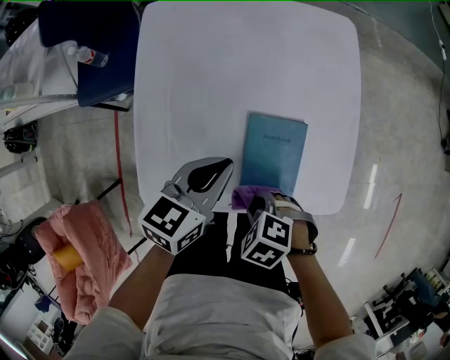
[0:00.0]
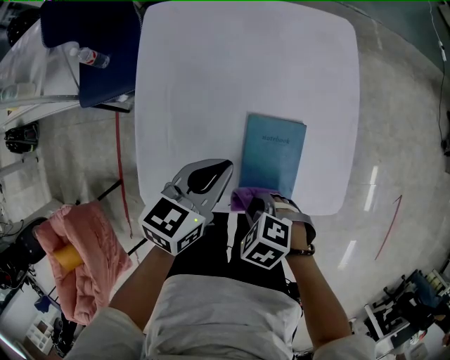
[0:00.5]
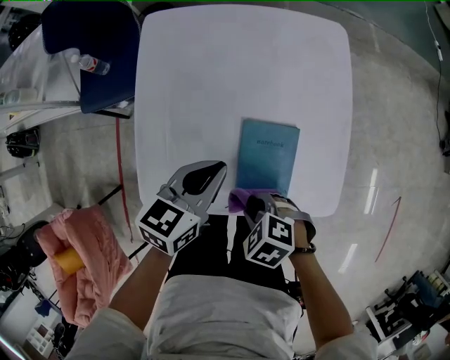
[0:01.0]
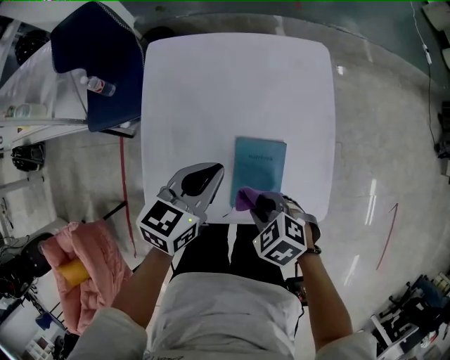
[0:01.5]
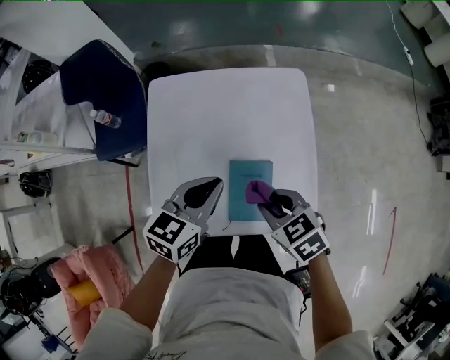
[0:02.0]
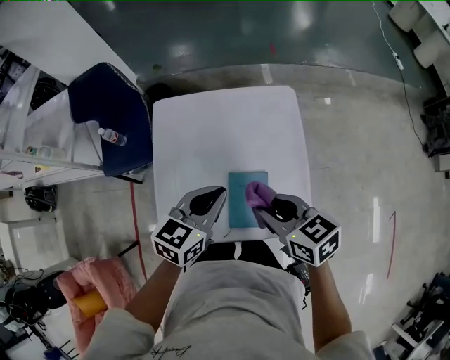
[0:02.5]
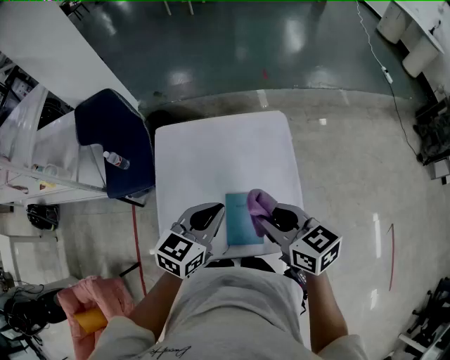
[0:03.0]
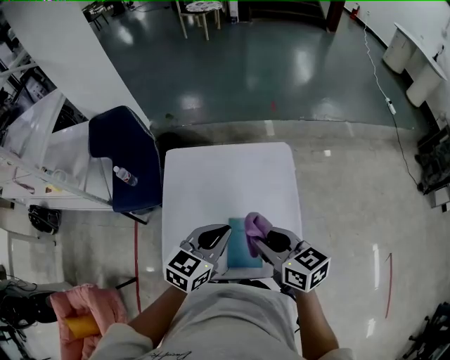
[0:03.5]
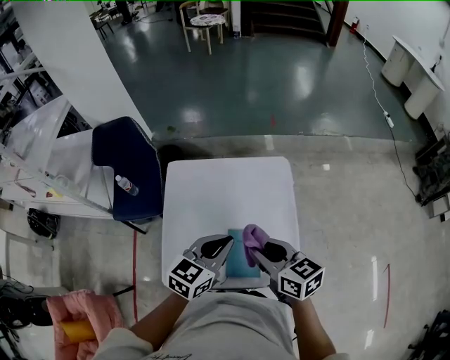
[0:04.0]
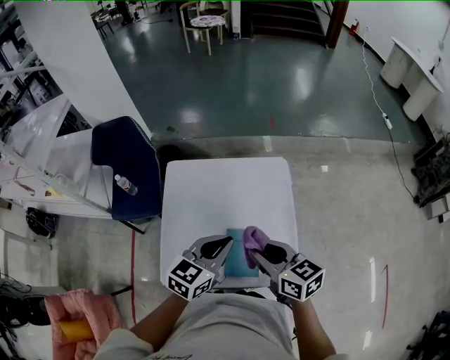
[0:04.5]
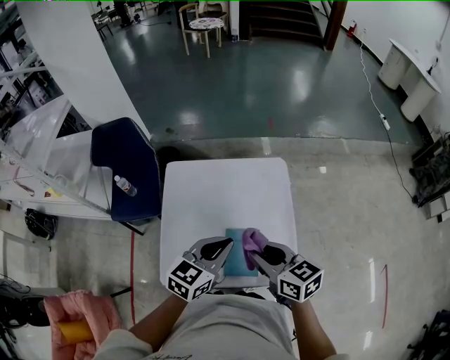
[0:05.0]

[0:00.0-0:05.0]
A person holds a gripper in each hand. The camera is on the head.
0:00.0 to 0:02.5: The left gripper moves upward, roughly 15 cm. The right gripper moves upward, roughly 25 cm, and tips its fingers upward by about 40 degrees.
0:02.5 to 0:05.0: The left gripper ends up about 5 cm from where it was, while the right gripper travels upward by approximately 5 cm.

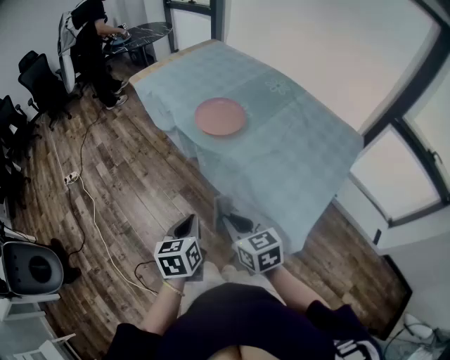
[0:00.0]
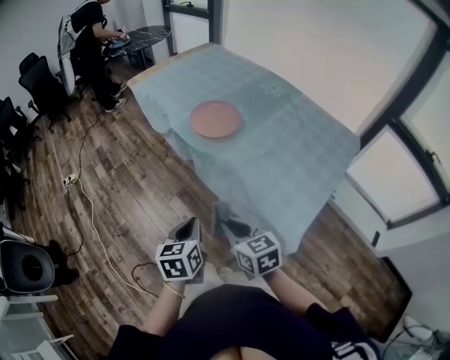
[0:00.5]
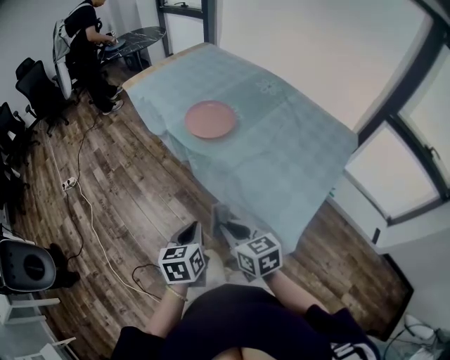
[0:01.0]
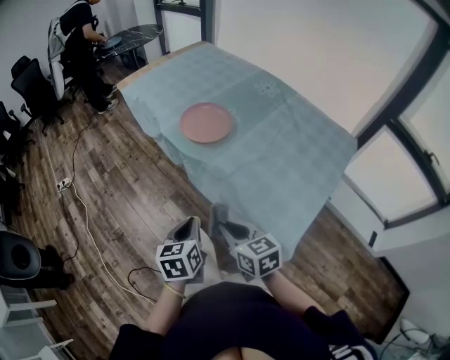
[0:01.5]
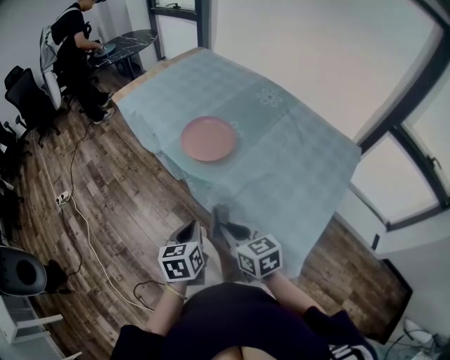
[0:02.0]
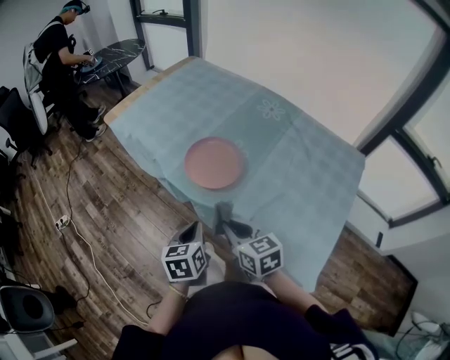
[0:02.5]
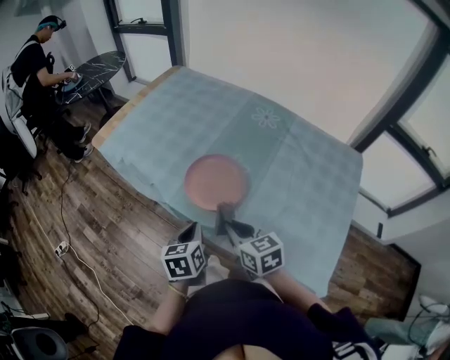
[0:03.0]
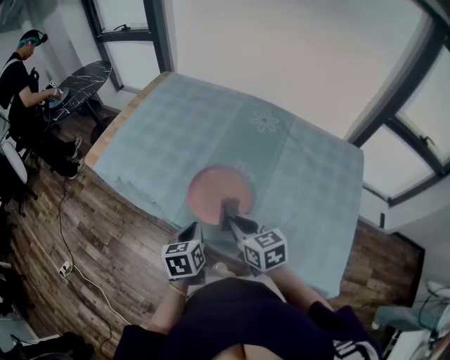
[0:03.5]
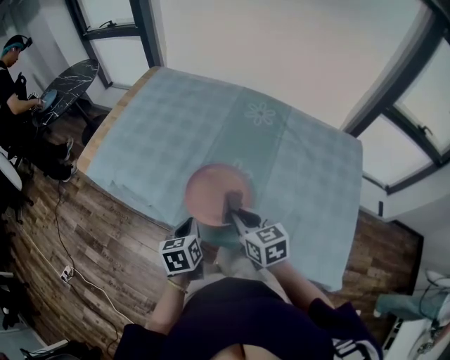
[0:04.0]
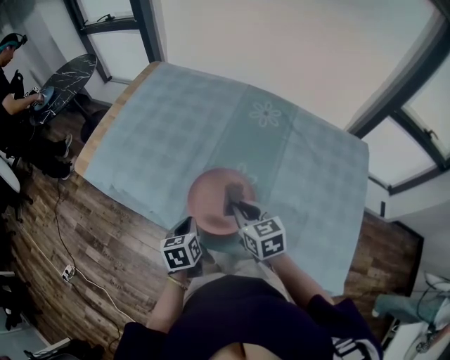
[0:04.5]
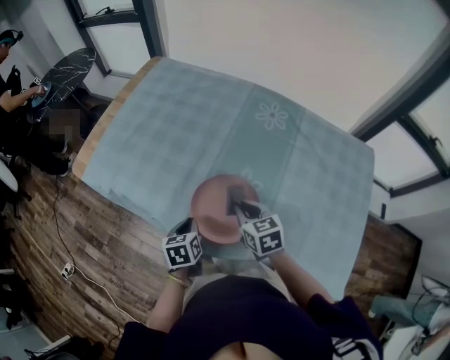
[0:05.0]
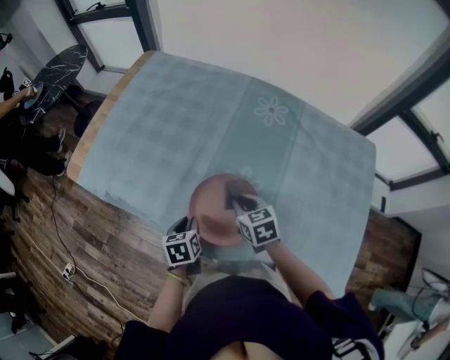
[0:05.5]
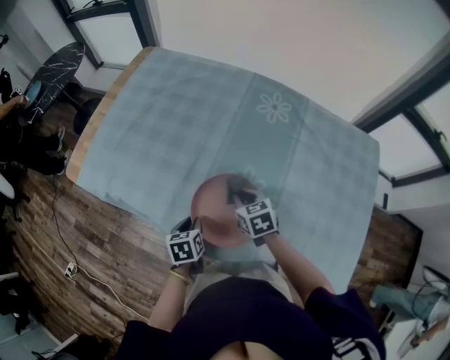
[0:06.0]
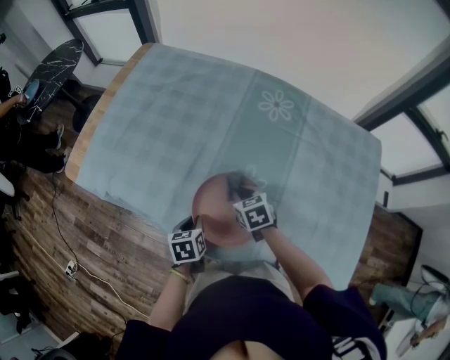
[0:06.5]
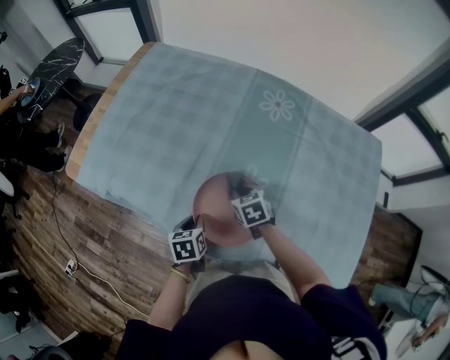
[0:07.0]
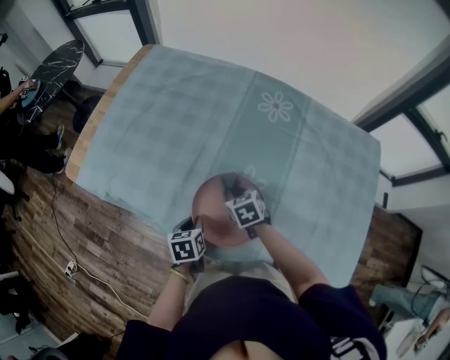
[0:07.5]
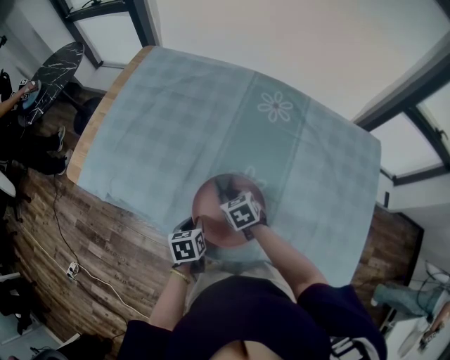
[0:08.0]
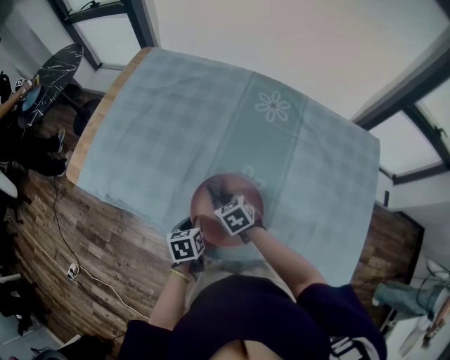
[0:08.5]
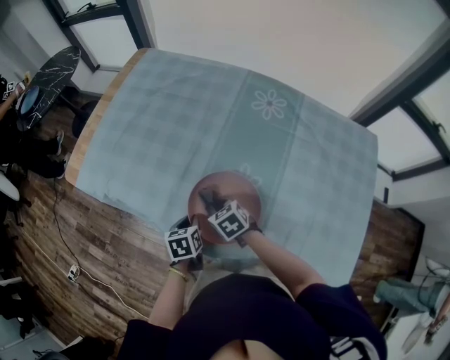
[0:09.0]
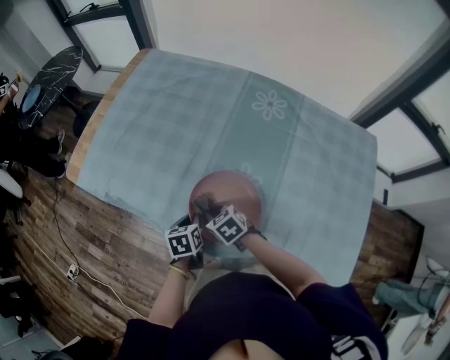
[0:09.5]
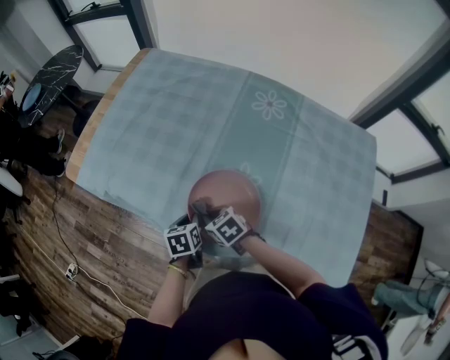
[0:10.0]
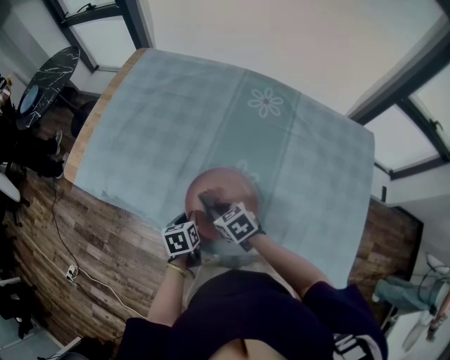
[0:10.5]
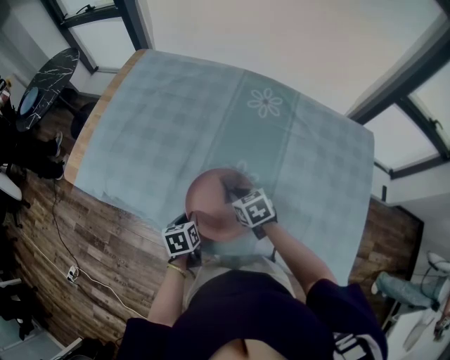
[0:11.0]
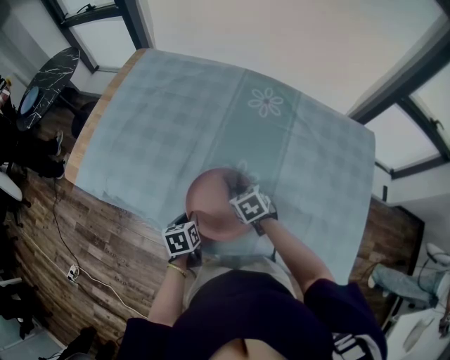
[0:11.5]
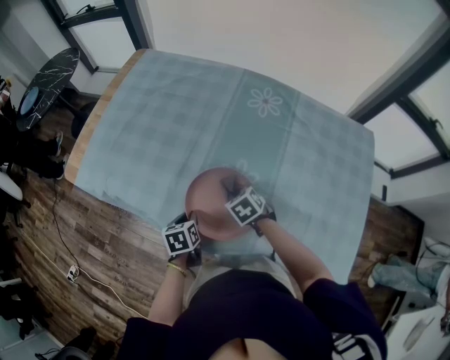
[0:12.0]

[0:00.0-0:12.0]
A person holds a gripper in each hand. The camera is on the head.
0:00.0 to 0:02.0: The right gripper is displaced forward by roughly 10 cm. The left gripper moves forward and to the right, some 10 cm.
0:02.0 to 0:04.0: Both grippers move forward, approximately 30 cm. The right gripper swivels about 20 degrees.
0:04.0 to 0:06.0: The right gripper goes approximately 20 cm forward and downward. Meanwhile the left gripper travels downward and forward by approximately 15 cm.
0:06.0 to 0:08.0: The right gripper ends up roughly 5 cm from where it was.
0:08.0 to 0:10.0: The right gripper moves to the left and backward, some 10 cm.
0:10.0 to 0:12.0: The right gripper heads to the right, covering some 10 cm.

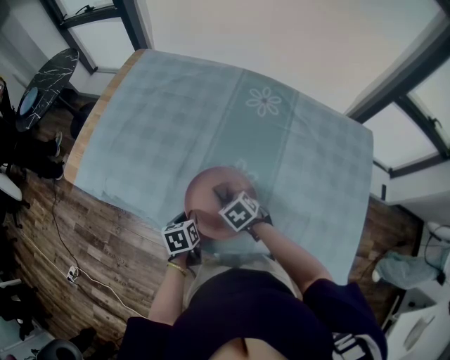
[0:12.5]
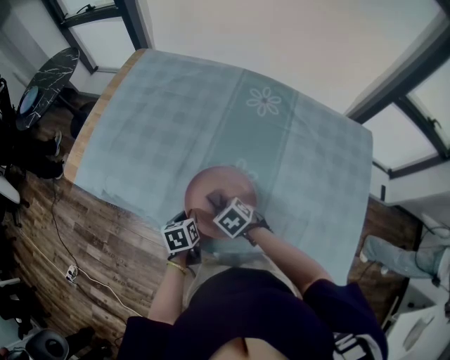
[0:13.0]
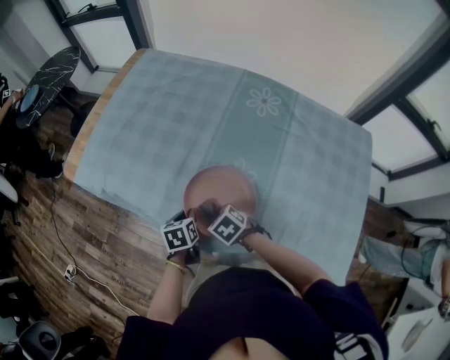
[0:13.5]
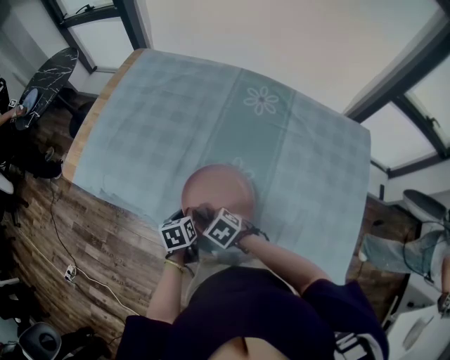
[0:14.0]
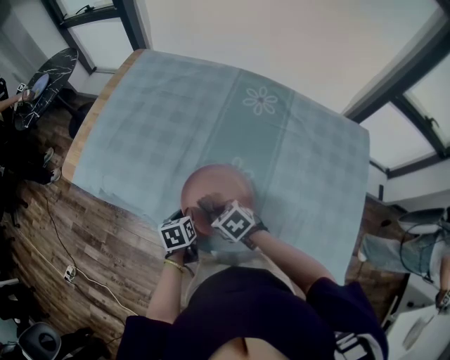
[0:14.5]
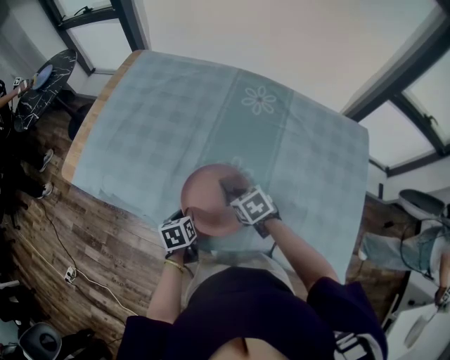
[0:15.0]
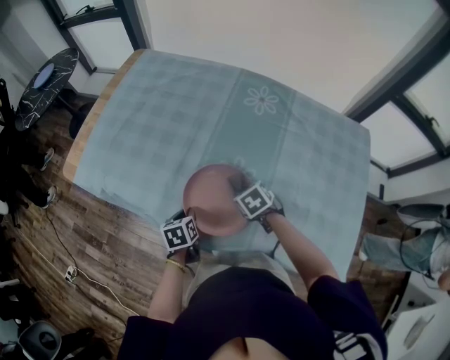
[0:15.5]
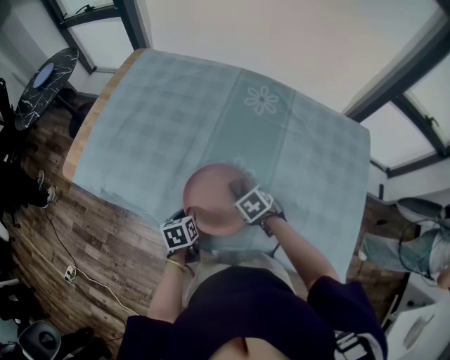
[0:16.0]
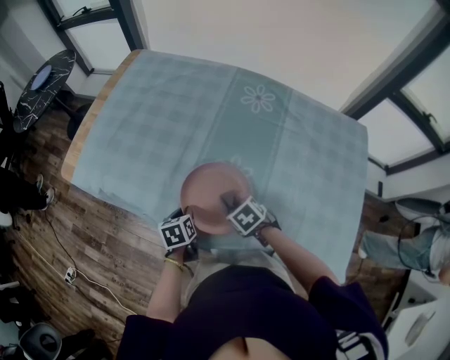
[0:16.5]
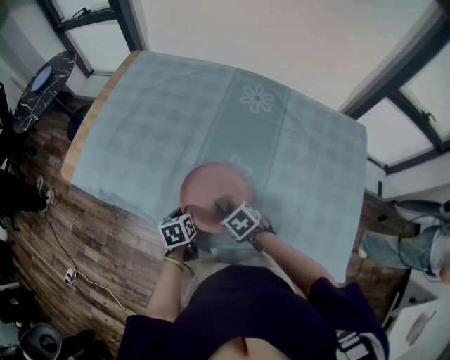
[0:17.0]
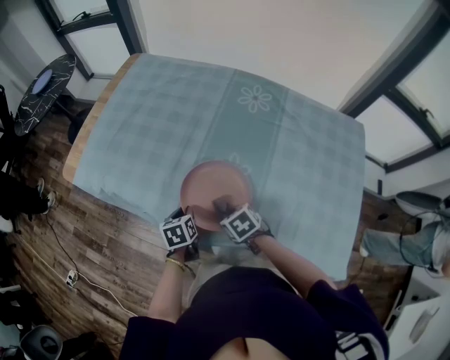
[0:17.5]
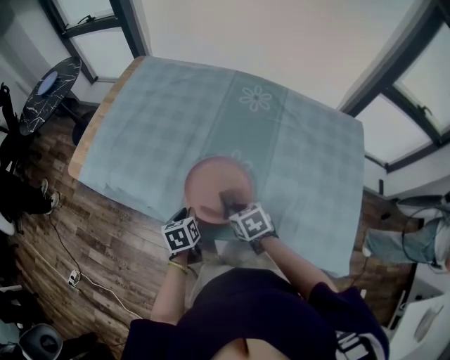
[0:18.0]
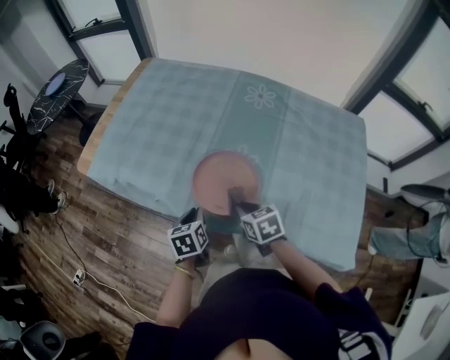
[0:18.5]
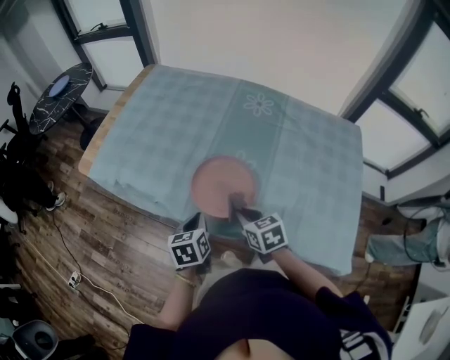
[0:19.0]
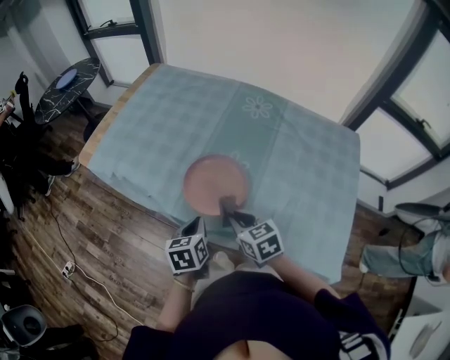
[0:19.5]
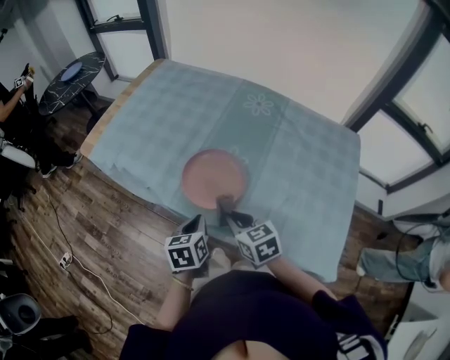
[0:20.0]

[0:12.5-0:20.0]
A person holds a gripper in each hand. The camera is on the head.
0:12.5 to 0:14.5: The right gripper heads to the left, covering approximately 5 cm.
0:14.5 to 0:16.5: The right gripper moves about 10 cm.
0:16.5 to 0:18.0: The right gripper goes about 5 cm upward, and rotates roughly 20 degrees.
0:18.0 to 0:20.0: The right gripper moves upward and backward, roughly 15 cm, and turns by about 20 degrees; the left gripper goes roughly 15 cm backward, upward and to the right.

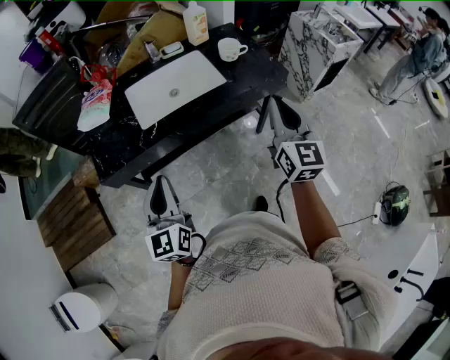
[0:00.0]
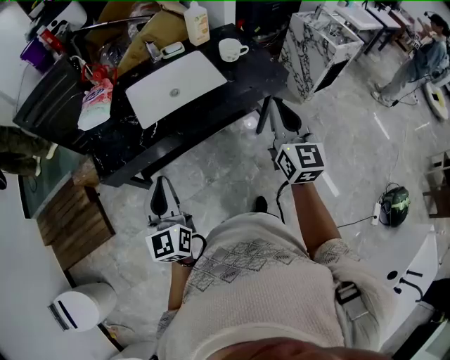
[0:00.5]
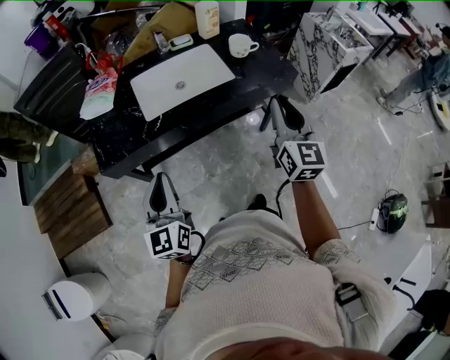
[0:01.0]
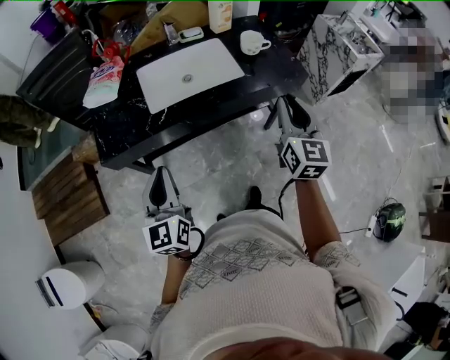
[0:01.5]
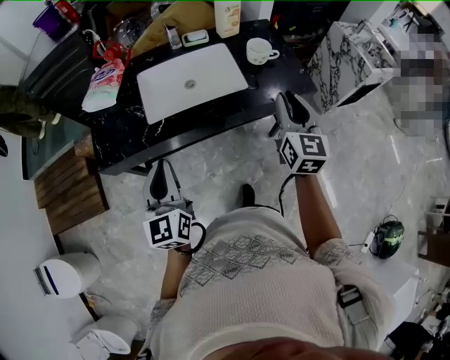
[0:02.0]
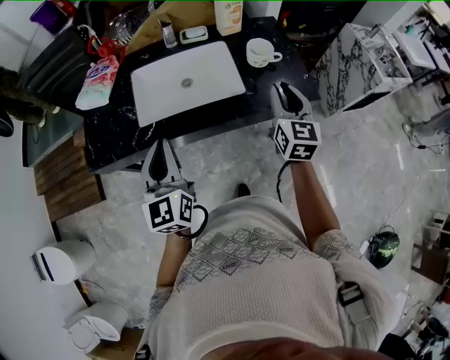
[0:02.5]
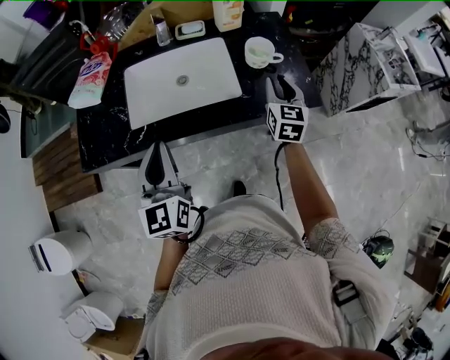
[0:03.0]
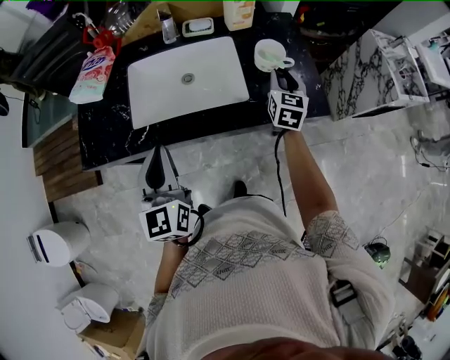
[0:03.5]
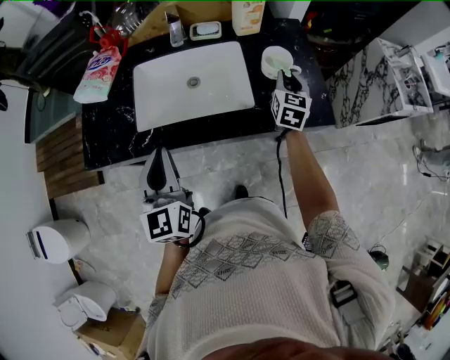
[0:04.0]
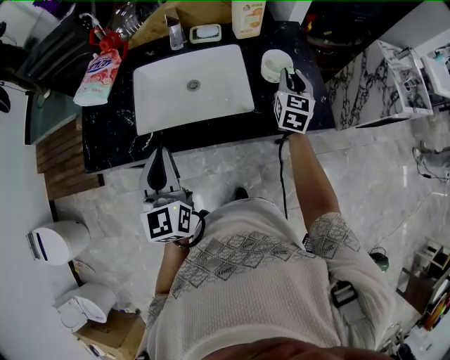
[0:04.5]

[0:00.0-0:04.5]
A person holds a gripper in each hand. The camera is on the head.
0:00.0 to 0:02.0: The grippers both shift forward by about 10 cm.
0:02.0 to 0:04.5: The right gripper goes some 30 cm forward and downward, while the left gripper heads forward and to the right, covering approximately 15 cm.
